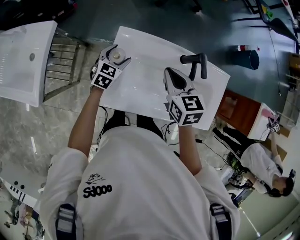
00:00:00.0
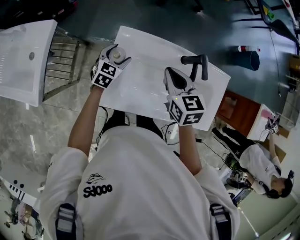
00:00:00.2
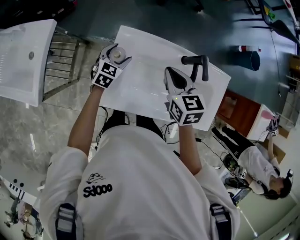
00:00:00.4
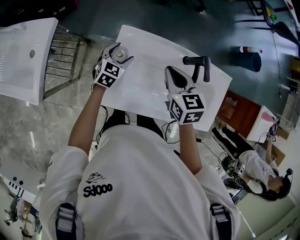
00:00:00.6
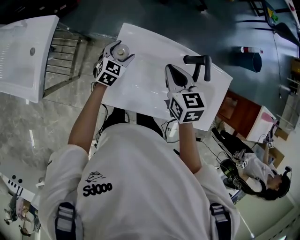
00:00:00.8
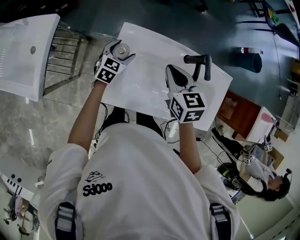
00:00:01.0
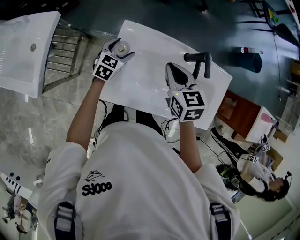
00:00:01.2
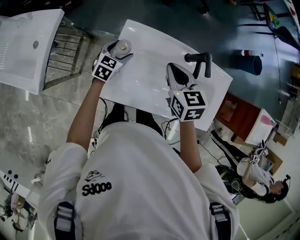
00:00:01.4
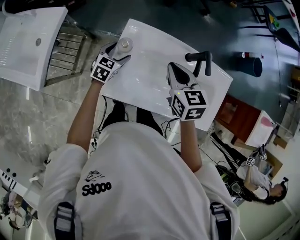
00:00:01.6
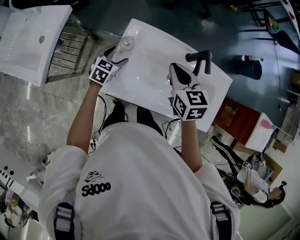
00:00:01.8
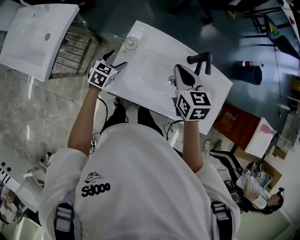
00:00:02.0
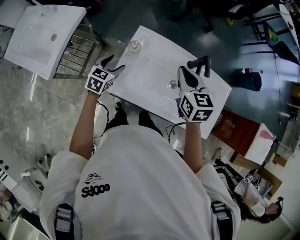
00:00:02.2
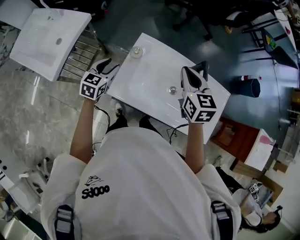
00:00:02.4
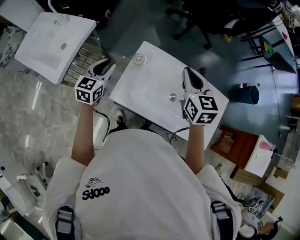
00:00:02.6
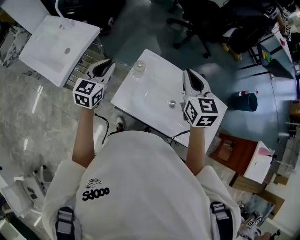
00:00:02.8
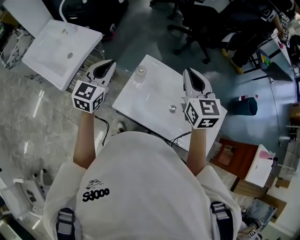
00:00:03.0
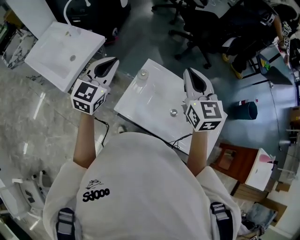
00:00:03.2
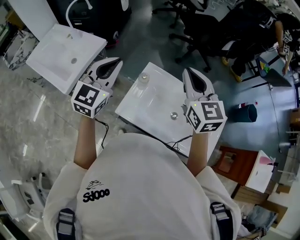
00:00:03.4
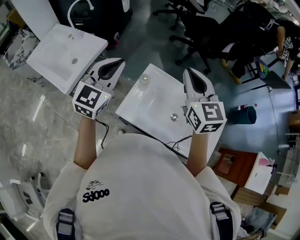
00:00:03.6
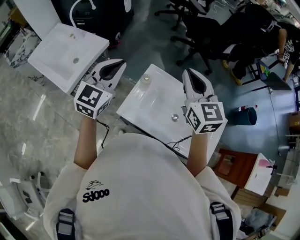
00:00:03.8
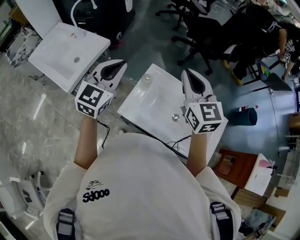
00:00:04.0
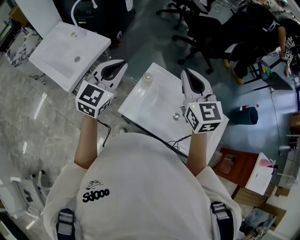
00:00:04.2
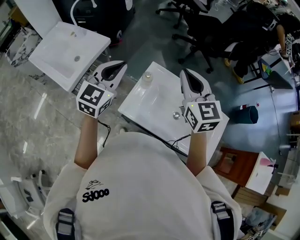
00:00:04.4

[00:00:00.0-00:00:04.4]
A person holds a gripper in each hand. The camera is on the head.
00:00:00.0 to 00:00:01.4: The grippers stay close to where they were, moving slightly.
00:00:01.4 to 00:00:03.0: The left gripper moves upward, about 30 cm, swivels some 40 degrees, and closes. The right gripper heads upward, covering about 15 cm, and rotates approximately 30 degrees.
00:00:03.0 to 00:00:04.4: The right gripper is displaced to the left by some 5 cm. The left gripper travels upward by roughly 5 cm.

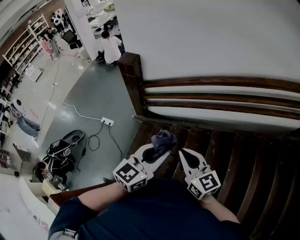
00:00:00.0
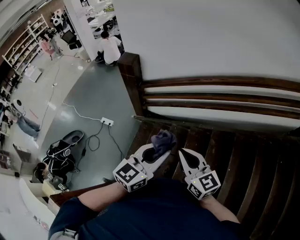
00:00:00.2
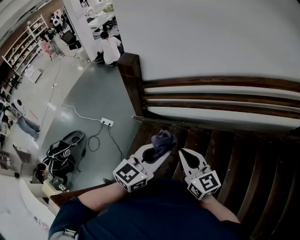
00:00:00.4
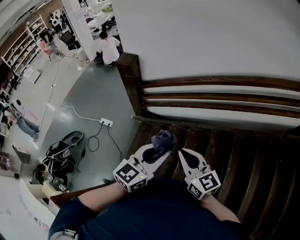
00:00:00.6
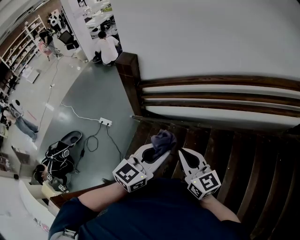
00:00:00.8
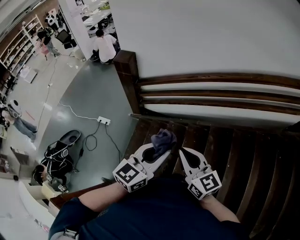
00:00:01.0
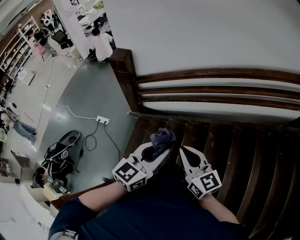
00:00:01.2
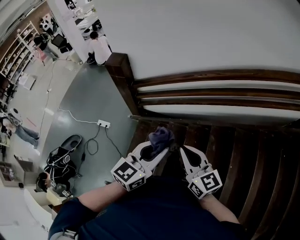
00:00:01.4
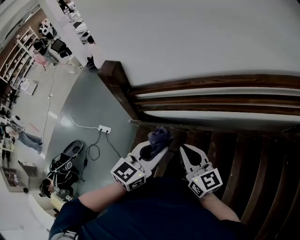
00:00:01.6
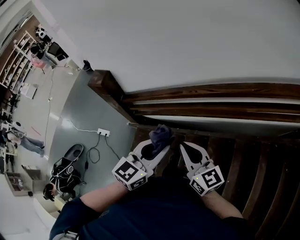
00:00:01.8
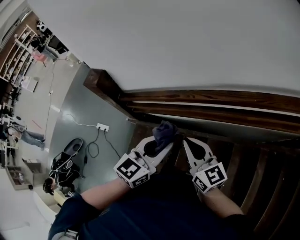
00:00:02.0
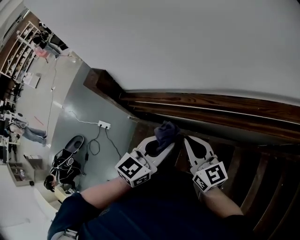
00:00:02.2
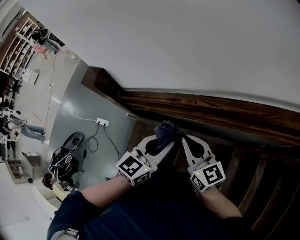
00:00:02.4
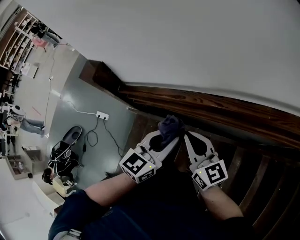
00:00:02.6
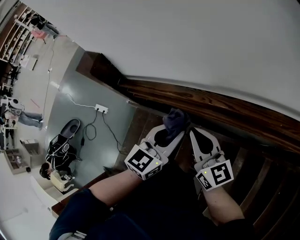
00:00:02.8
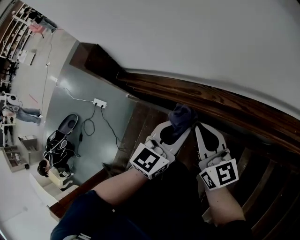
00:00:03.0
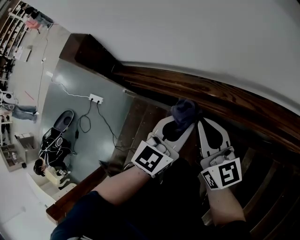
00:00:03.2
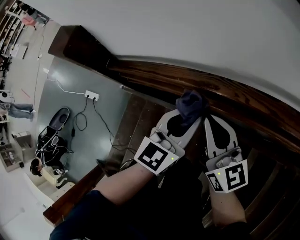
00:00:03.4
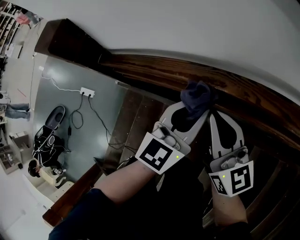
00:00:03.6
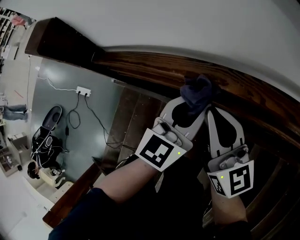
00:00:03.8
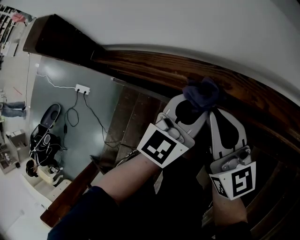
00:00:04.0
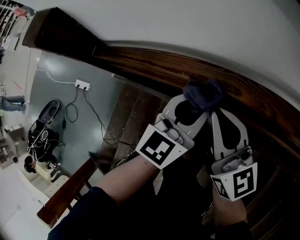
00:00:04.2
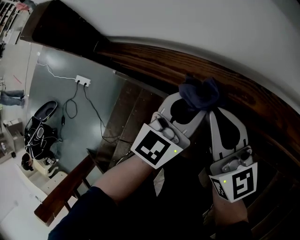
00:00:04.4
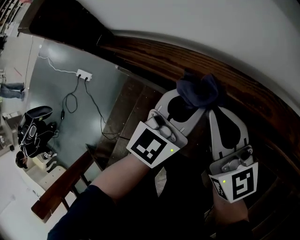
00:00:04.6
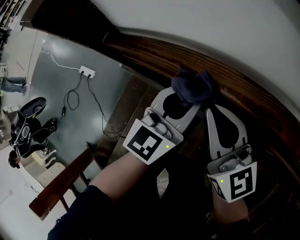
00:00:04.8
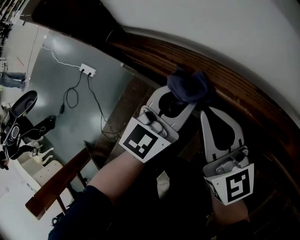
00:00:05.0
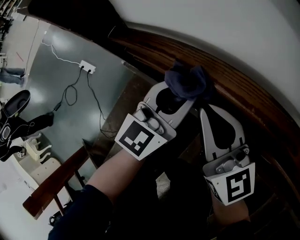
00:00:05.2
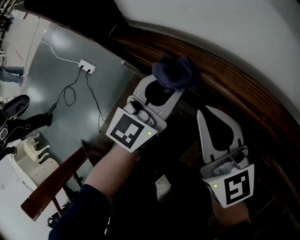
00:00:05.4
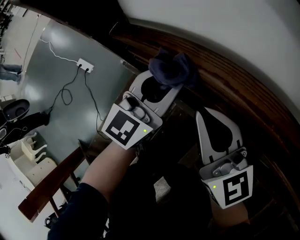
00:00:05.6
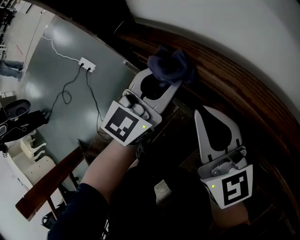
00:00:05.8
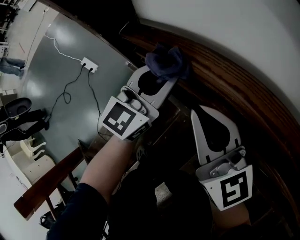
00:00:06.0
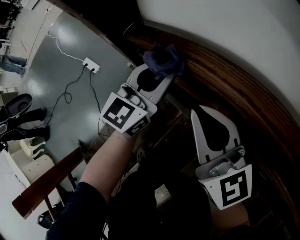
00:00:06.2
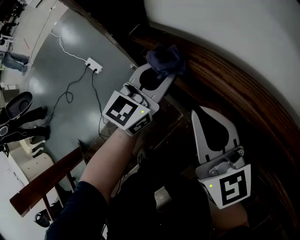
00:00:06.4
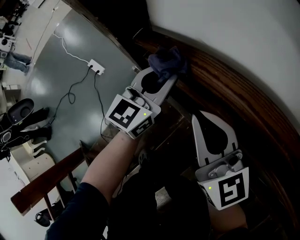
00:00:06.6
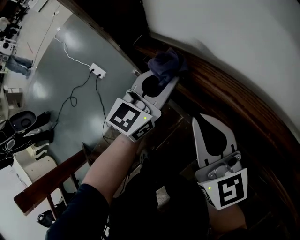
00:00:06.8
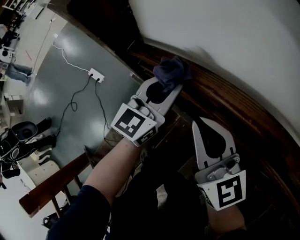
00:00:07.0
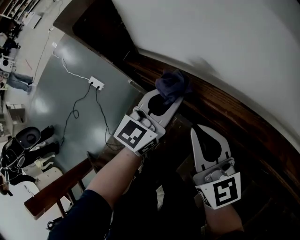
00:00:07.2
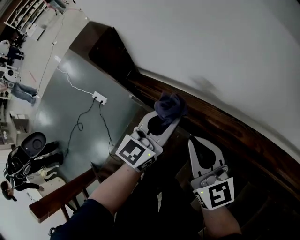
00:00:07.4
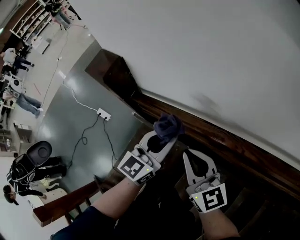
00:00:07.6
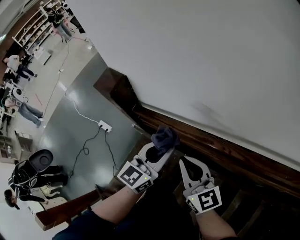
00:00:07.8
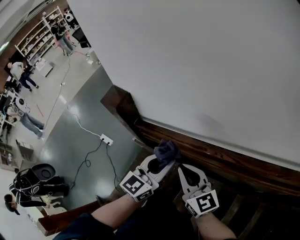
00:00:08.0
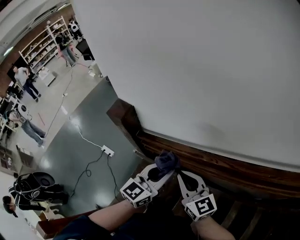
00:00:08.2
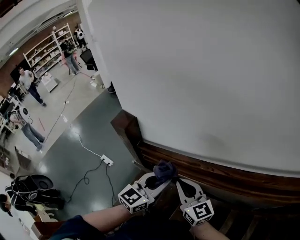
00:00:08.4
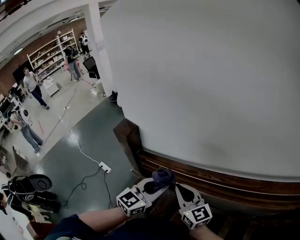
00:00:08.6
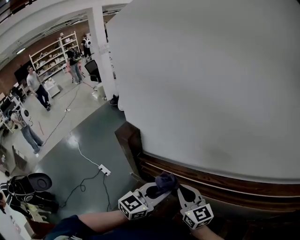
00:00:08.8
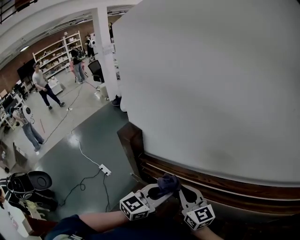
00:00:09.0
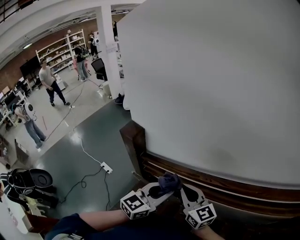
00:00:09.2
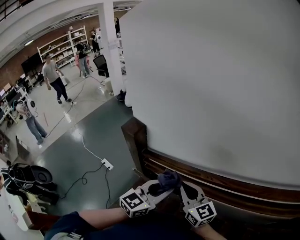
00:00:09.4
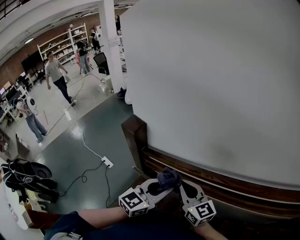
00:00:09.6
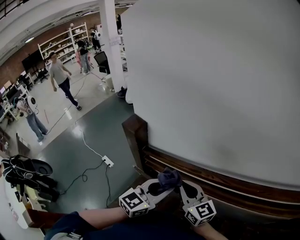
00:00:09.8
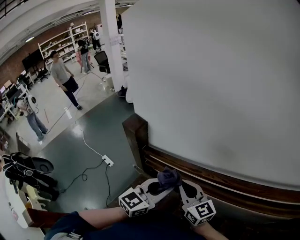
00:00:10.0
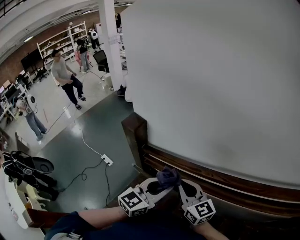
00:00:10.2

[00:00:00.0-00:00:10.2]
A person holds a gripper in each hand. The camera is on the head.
00:00:00.0 to 00:00:01.4: Both grippers travel together forward, some 5 cm.
00:00:01.4 to 00:00:03.0: The pair of grippers is taken forward, approximately 40 cm. The left gripper heads downward, covering approximately 15 cm.
00:00:03.0 to 00:00:04.4: The two grippers go about 20 cm downward and forward.
00:00:04.4 to 00:00:05.8: The left gripper is displaced to the left, downward and forward by roughly 30 cm. Meanwhile the right gripper moves to the left and downward, roughly 20 cm.
00:00:05.8 to 00:00:07.2: The left gripper travels upward and to the right by approximately 15 cm. Meanwhile the right gripper shifts approximately 15 cm upward, backward and to the right.
00:00:07.2 to 00:00:08.8: Both grippers move upward and backward, approximately 40 cm.
00:00:08.8 to 00:00:10.2: The grippers make only small movements.

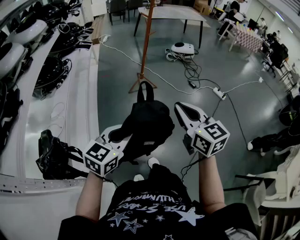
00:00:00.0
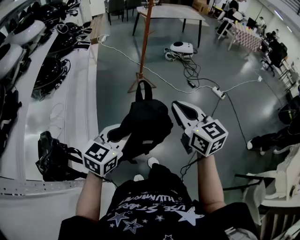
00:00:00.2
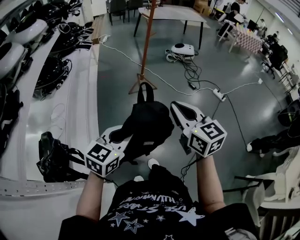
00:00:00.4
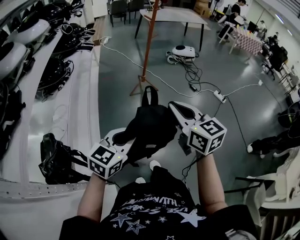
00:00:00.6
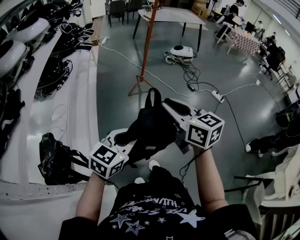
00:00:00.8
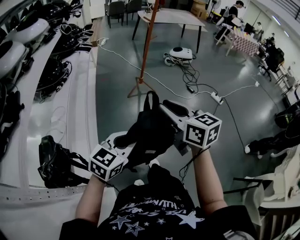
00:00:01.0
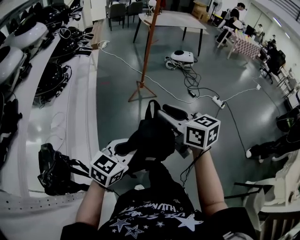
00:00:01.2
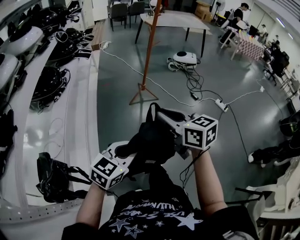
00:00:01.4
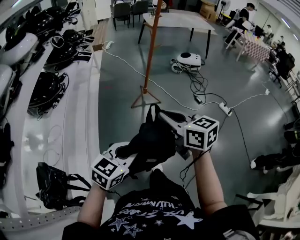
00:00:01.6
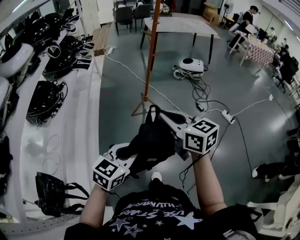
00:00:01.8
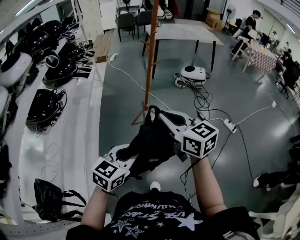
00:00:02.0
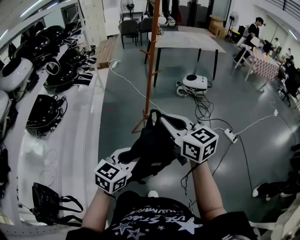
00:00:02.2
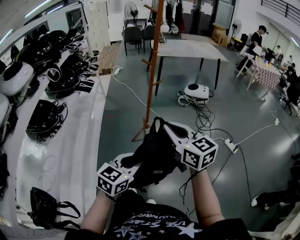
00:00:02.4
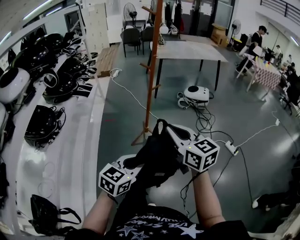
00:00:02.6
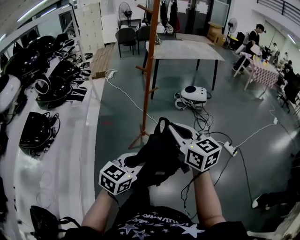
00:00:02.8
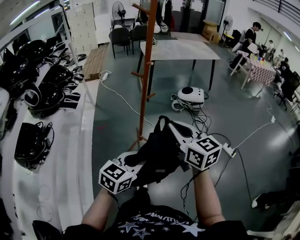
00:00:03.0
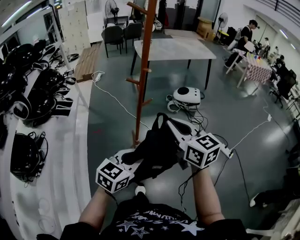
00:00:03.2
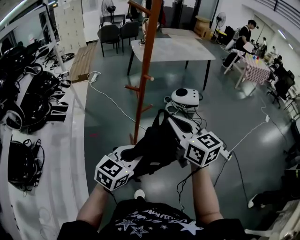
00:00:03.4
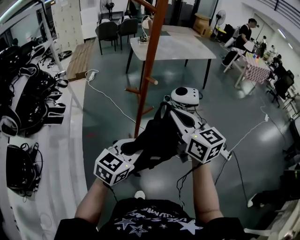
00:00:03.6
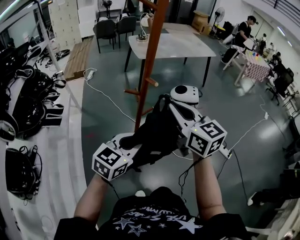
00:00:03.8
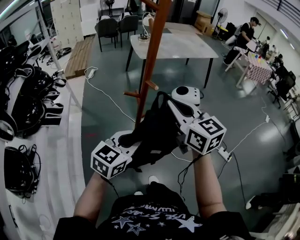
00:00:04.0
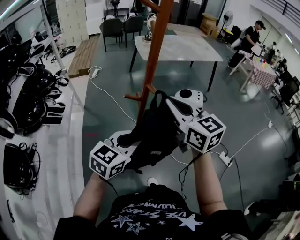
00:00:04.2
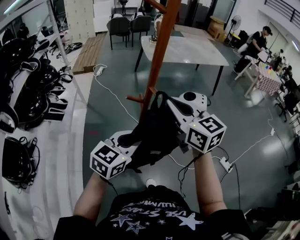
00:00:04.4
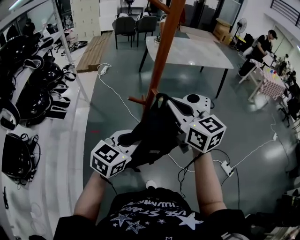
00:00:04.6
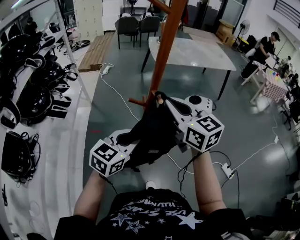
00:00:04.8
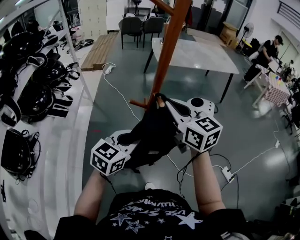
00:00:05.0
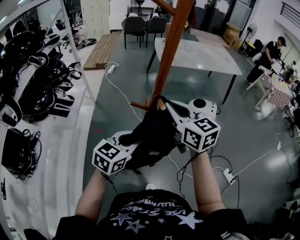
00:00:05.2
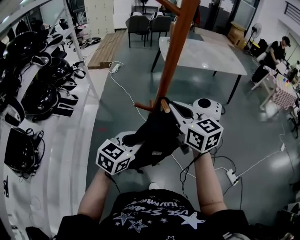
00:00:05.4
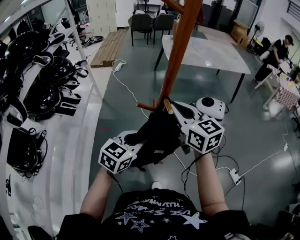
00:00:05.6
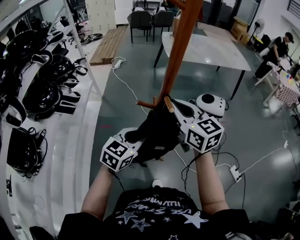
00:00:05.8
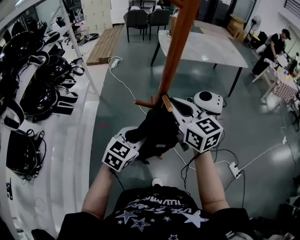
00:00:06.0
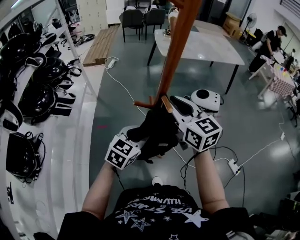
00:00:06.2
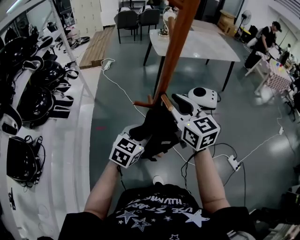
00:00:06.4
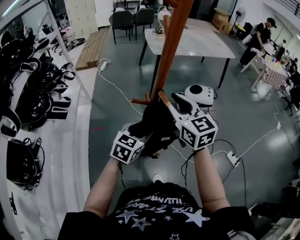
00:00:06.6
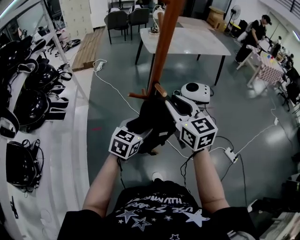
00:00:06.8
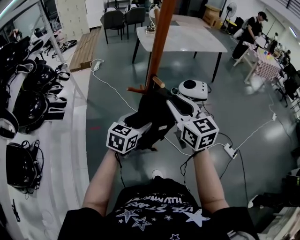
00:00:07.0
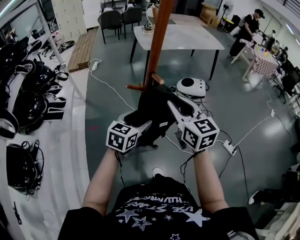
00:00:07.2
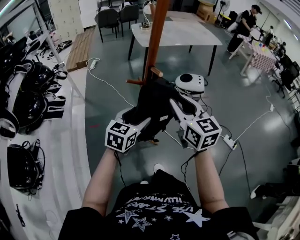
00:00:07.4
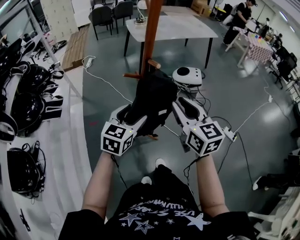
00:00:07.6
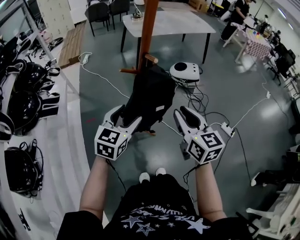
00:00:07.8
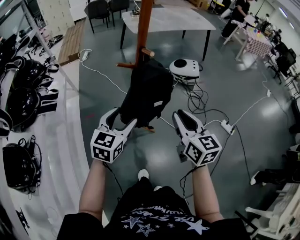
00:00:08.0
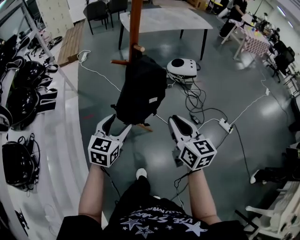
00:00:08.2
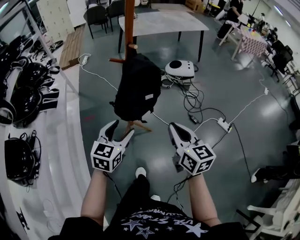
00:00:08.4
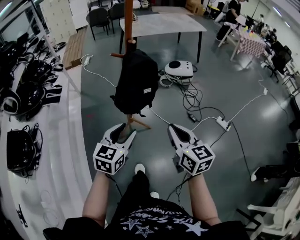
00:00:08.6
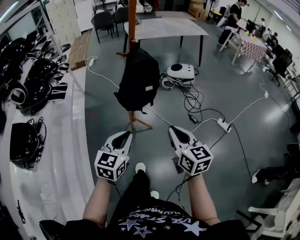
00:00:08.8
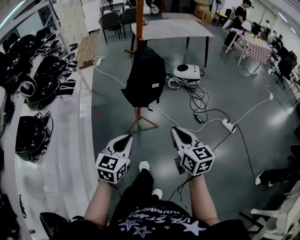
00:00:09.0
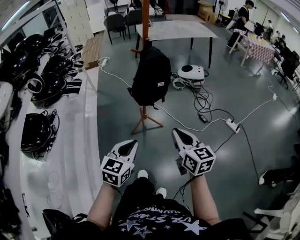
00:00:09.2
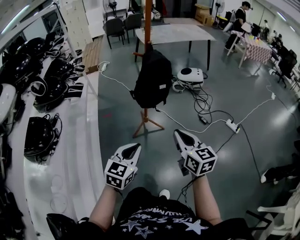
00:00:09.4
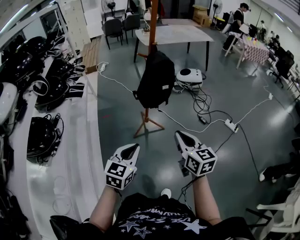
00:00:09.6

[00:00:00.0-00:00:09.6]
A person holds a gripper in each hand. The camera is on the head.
00:00:00.0 to 00:00:01.6: Both grippers travel together forward, some 15 cm. The right gripper changes its angle by roughly 20 degrees, and opens, then closes once more.
00:00:01.6 to 00:00:03.2: The pair of grippers is taken forward, approximately 50 cm.
00:00:03.2 to 00:00:04.8: Both grippers travel together forward, roughly 25 cm.
00:00:04.8 to 00:00:06.4: The left gripper shifts roughly 10 cm downward, while the right gripper shifts by roughly 5 cm, and opens.
00:00:06.4 to 00:00:08.0: The left gripper heads backward, covering approximately 10 cm, and opens its fingers, while the right gripper shifts some 25 cm backward, to the right and downward, and turns by about 20 degrees.
00:00:08.0 to 00:00:09.6: Both grippers travel together backward, about 35 cm. The left gripper closes its fingers.
